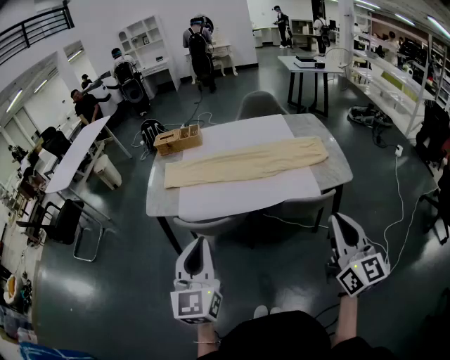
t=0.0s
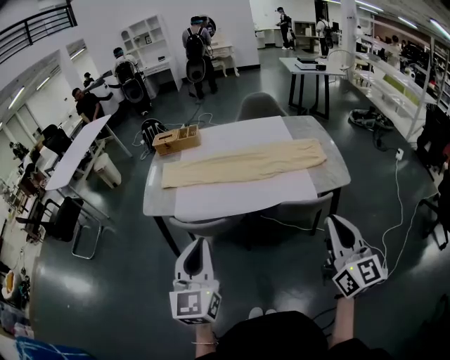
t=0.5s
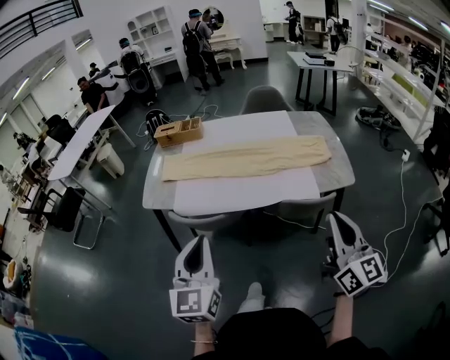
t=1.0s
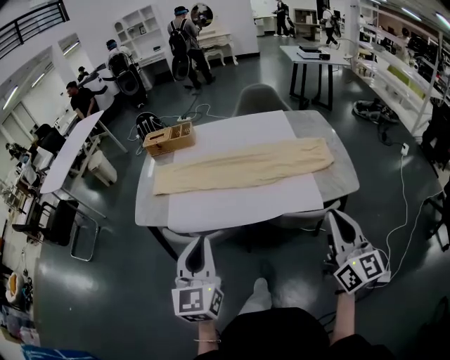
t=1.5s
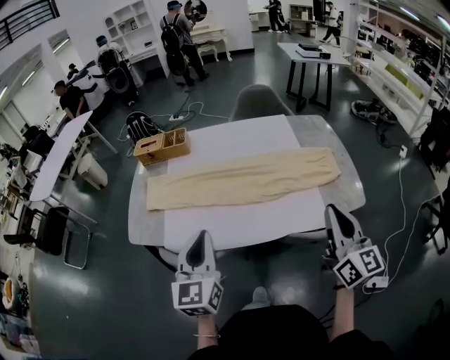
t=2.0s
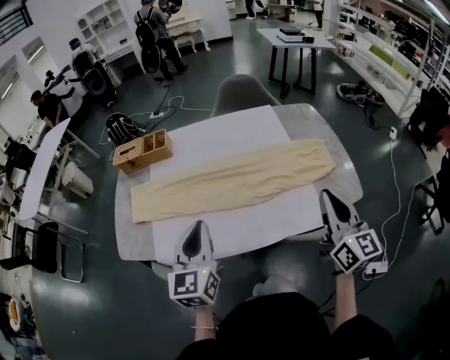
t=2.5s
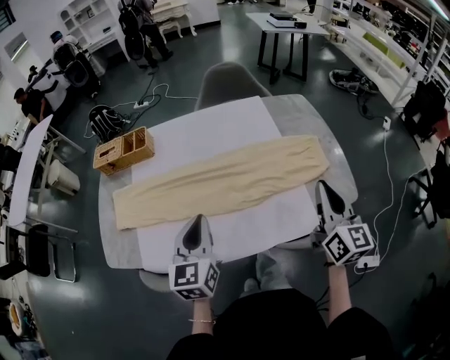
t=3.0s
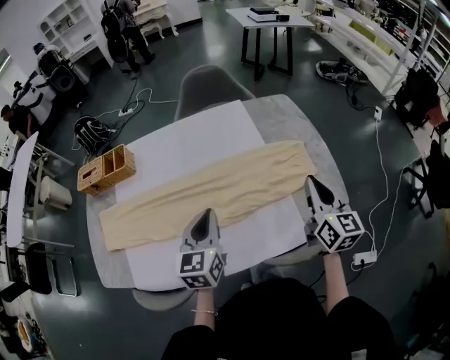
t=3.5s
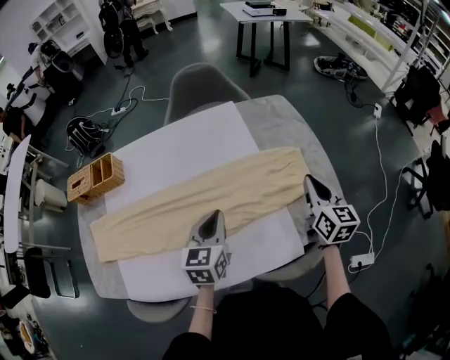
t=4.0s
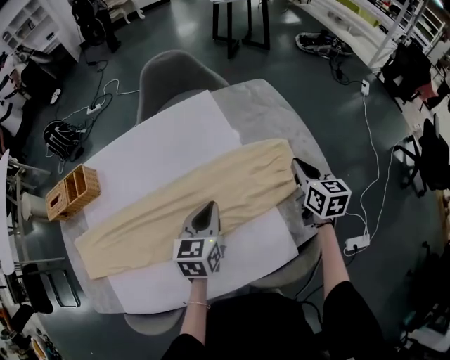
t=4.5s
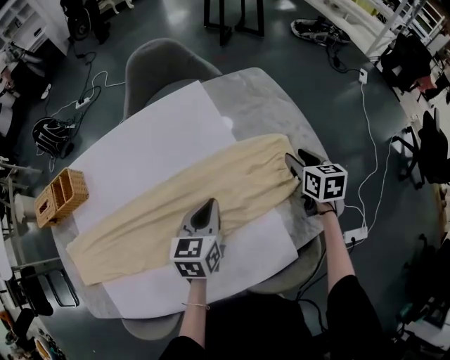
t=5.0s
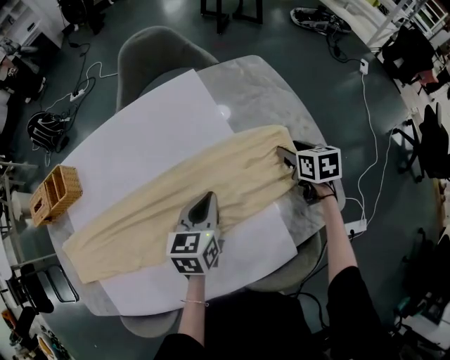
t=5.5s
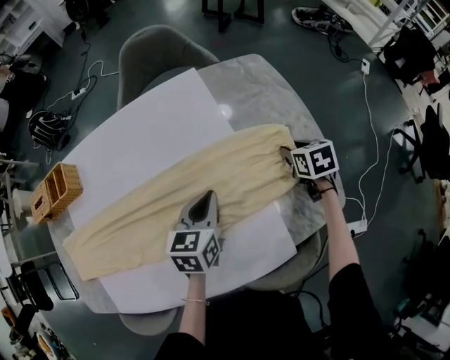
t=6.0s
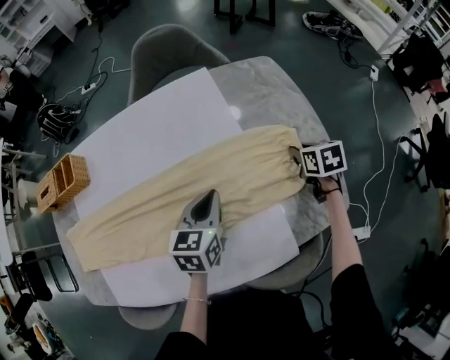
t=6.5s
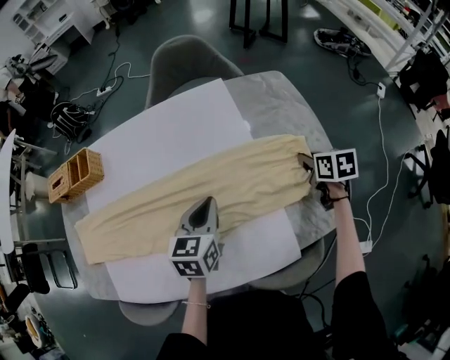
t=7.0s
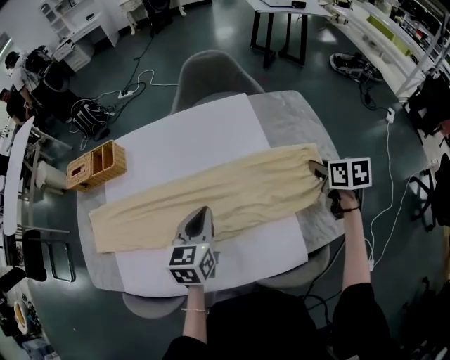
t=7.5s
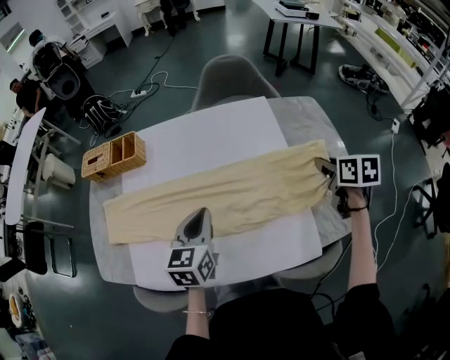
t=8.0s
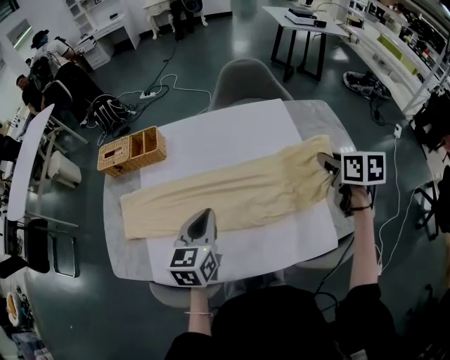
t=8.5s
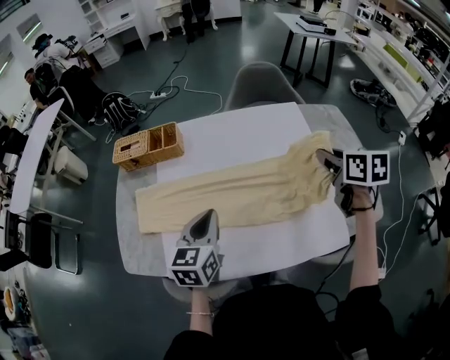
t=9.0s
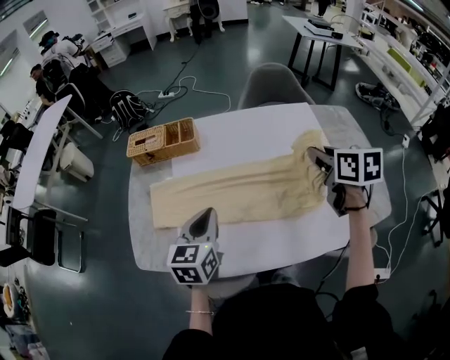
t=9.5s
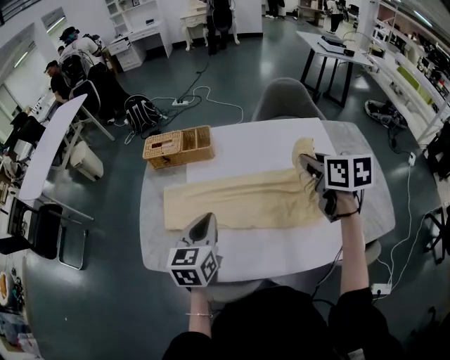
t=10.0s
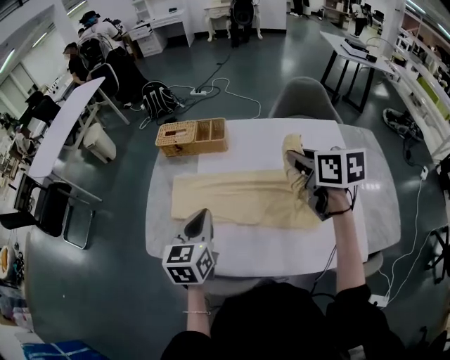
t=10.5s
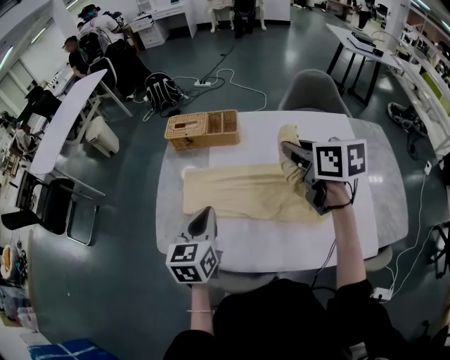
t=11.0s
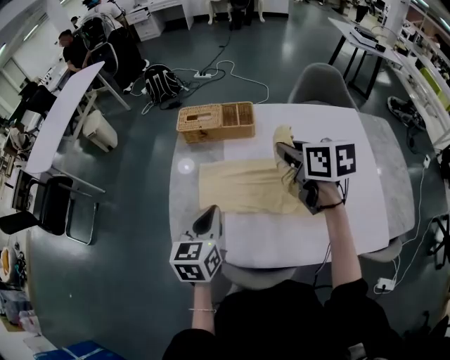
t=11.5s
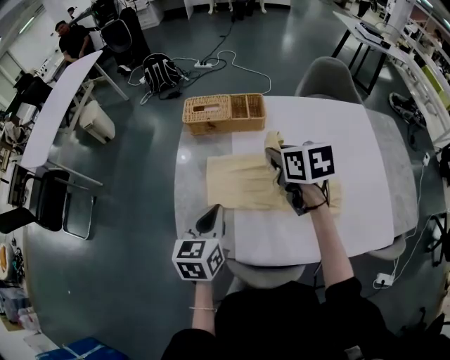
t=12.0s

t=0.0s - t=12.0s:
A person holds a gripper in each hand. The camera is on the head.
t=0.0s - t=2.0s: Both grippers travel together forward, about 25 cm.
t=2.0s - t=4.0s: The right gripper goes approximately 35 cm forward, downward and to the right, and changes its angle by about 30 degrees; the left gripper shifts some 40 cm forward, to the right and downward, and swivels about 30 degrees.
t=4.0s - t=6.0s: The right gripper moves downward and forward, some 20 cm, tilts its fingers approximately 40 degrees downward, and opens; the left gripper moves forward, downward and to the right, roughly 15 cm.
t=6.0s - t=8.0s: The left gripper shifts approximately 25 cm to the left, upward and backward, and rotates about 20 degrees. Meanwhile the right gripper shifts about 20 cm upward and to the left, and closes up.
t=8.0s - t=10.0s: The two grippers go some 30 cm to the left.
t=10.0s - t=12.0s: The right gripper goes some 30 cm to the left. The left gripper goes some 15 cm to the left.

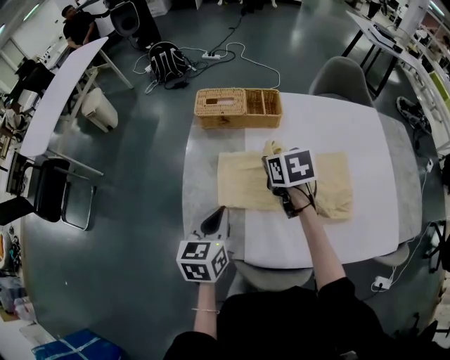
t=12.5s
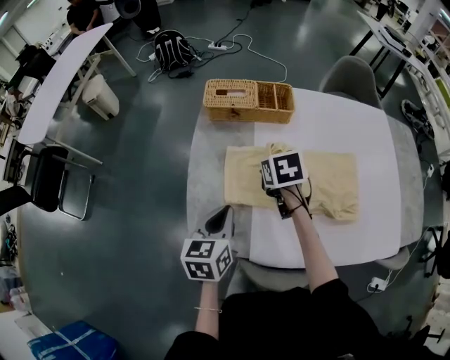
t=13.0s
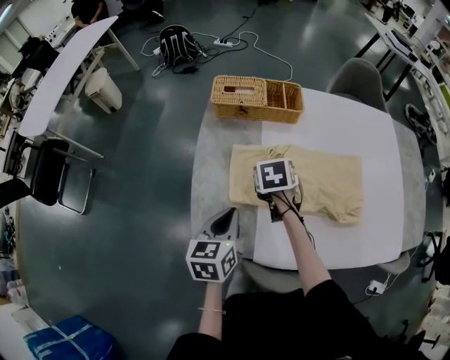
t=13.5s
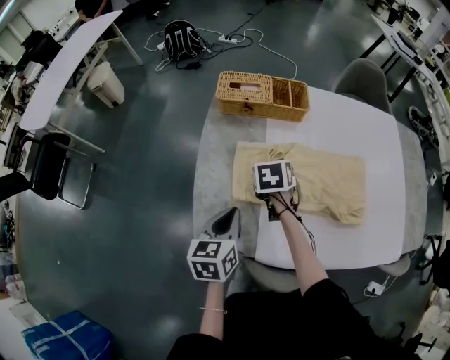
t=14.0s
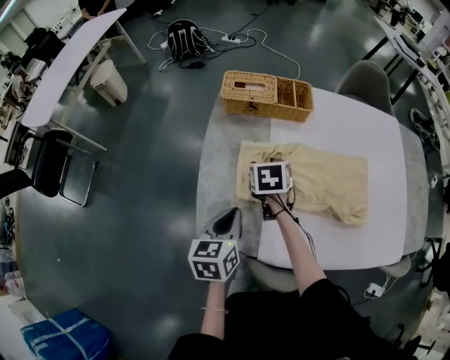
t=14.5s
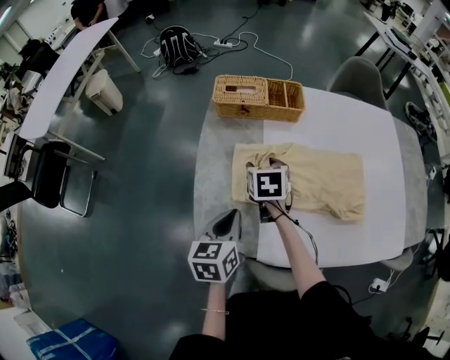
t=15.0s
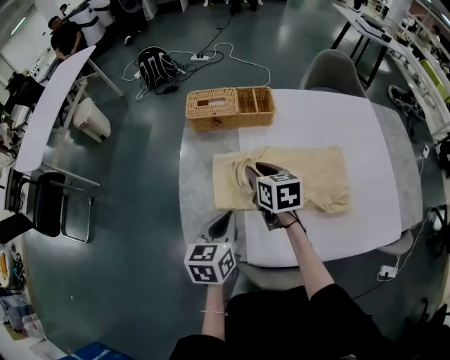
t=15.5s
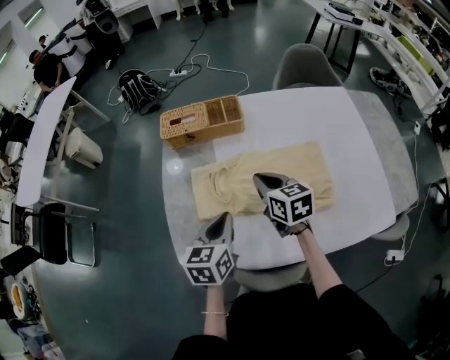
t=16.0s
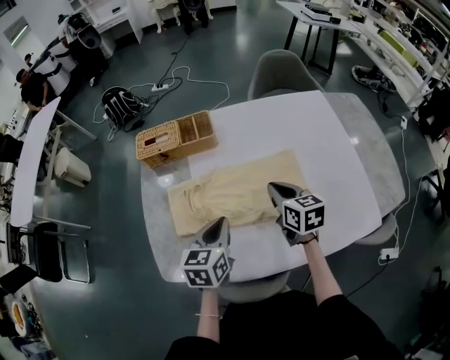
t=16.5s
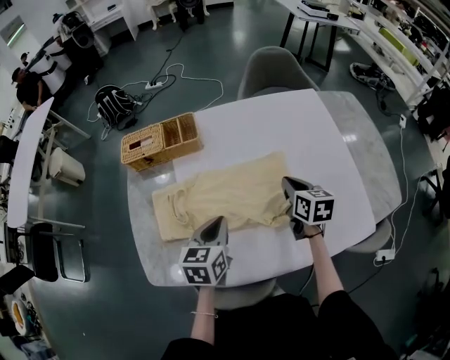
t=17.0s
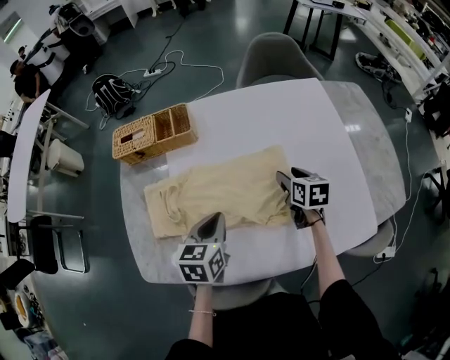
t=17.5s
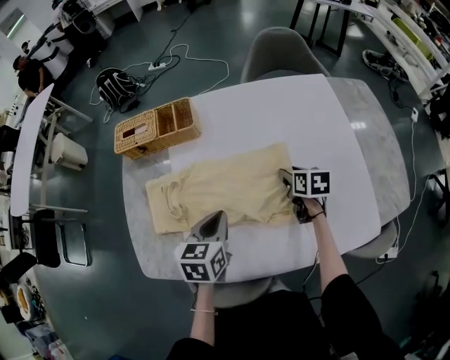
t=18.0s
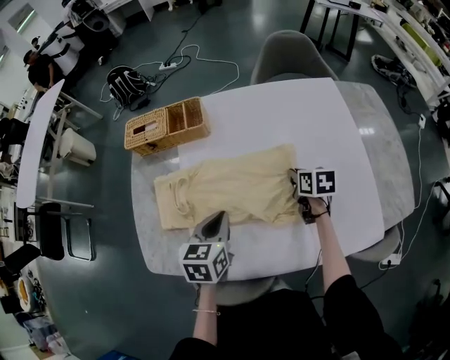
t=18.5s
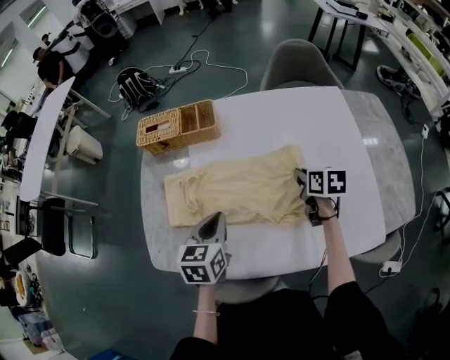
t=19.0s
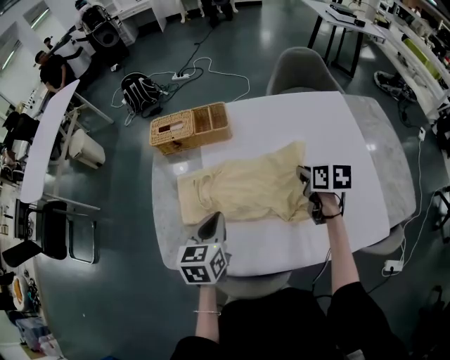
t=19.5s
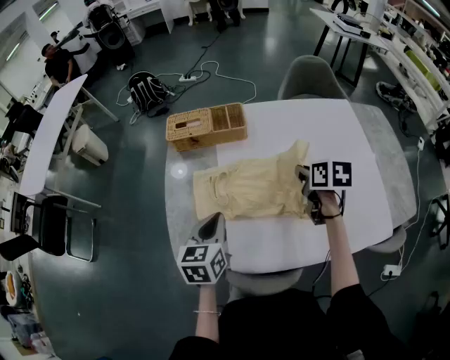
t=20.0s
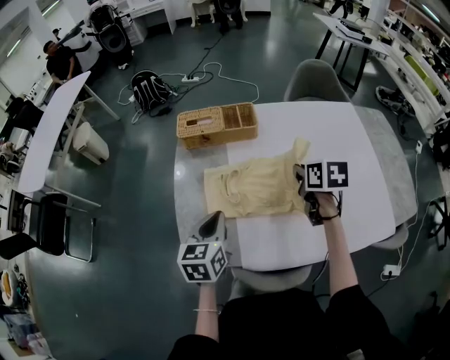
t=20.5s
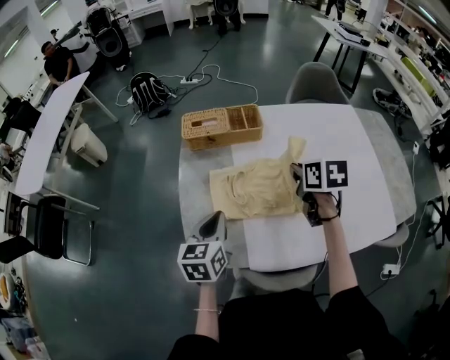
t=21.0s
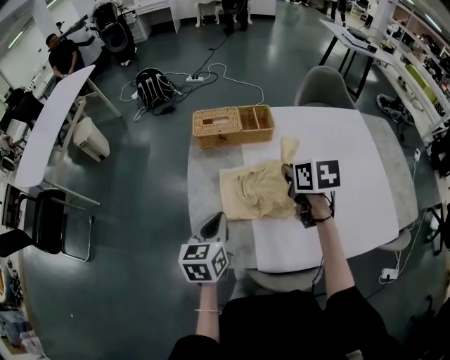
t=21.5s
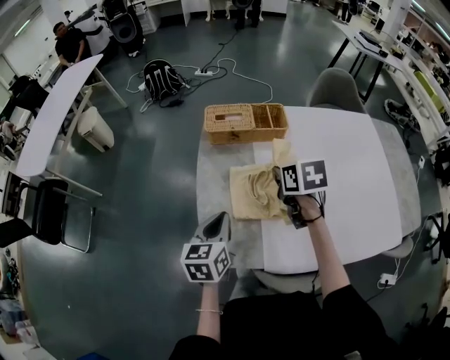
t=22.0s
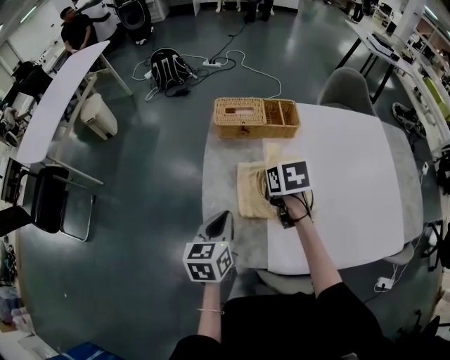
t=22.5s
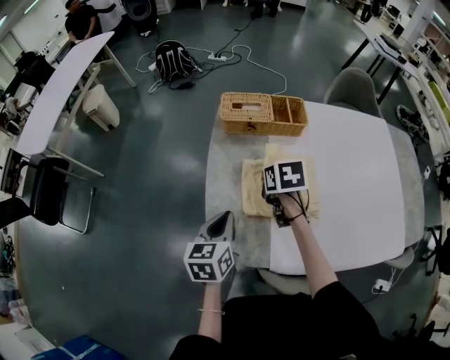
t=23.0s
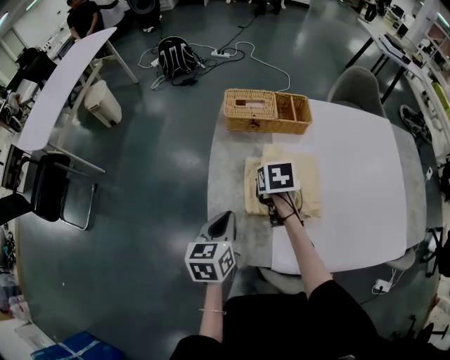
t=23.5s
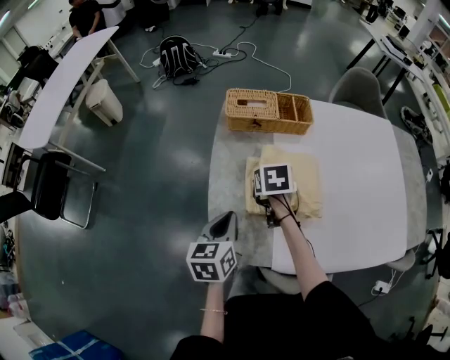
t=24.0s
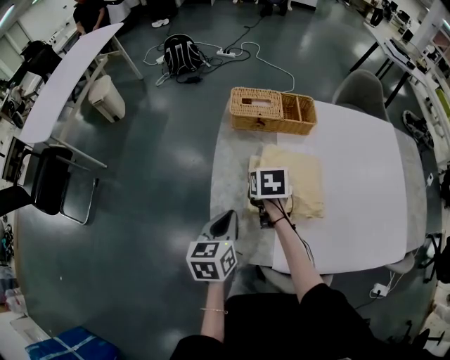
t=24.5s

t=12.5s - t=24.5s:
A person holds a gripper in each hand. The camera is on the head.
t=12.5s - t=14.5s: The left gripper travels downward by approximately 5 cm; the right gripper is displaced downward and to the left by approximately 15 cm, and opens up.
t=14.5s - t=16.5s: The left gripper heads to the right, covering some 20 cm; the right gripper goes approximately 25 cm to the right, rotates roughly 30 degrees, and closes up.
t=16.5s - t=18.5s: The right gripper shifts roughly 20 cm to the right, downward and forward, turns by roughly 20 degrees, and opens, then closes once more. The left gripper goes approximately 5 cm to the right.
t=18.5s - t=20.5s: The left gripper moves to the left, roughly 20 cm, while the right gripper shifts approximately 25 cm to the left and upward.
t=20.5s - t=22.5s: The left gripper moves to the left, about 10 cm. The right gripper heads to the left, covering some 20 cm.
t=22.5s - t=24.5s: The right gripper moves downward and to the left, approximately 10 cm, and opens up.

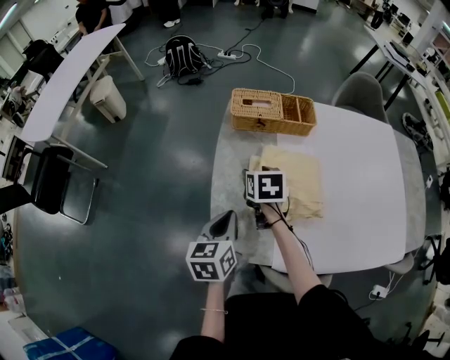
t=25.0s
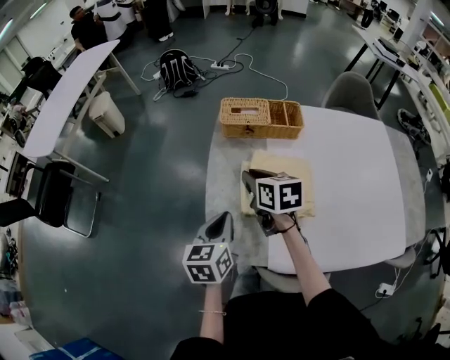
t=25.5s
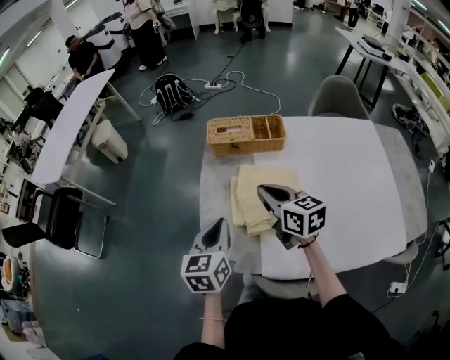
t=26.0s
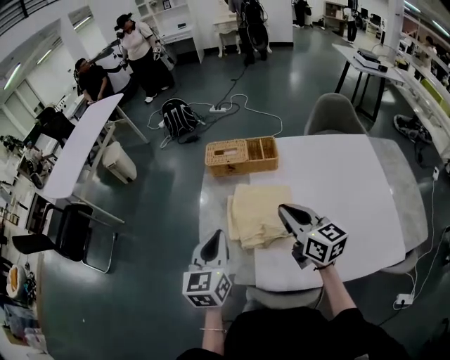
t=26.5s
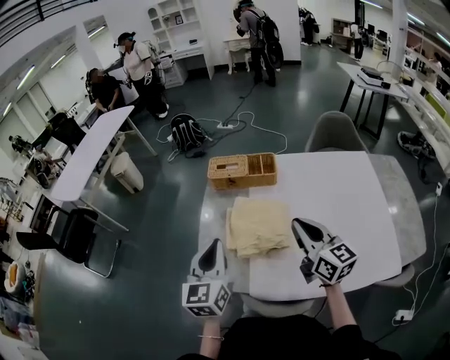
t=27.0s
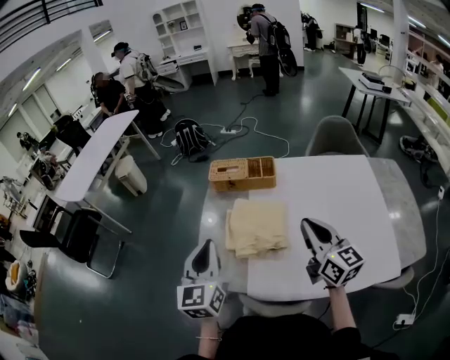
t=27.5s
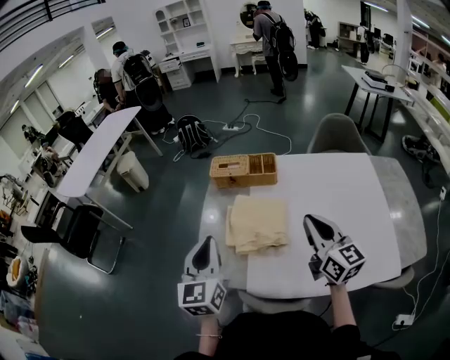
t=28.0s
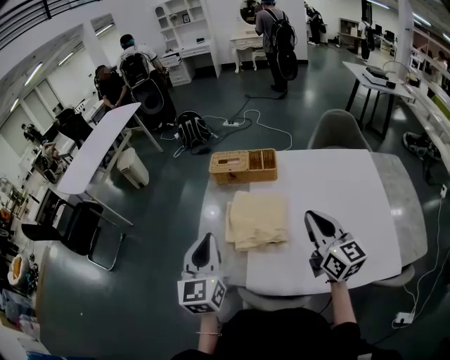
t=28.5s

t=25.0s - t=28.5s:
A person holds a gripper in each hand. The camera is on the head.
t=25.0s - t=27.0s: The left gripper moves upward and to the right, approximately 20 cm, and changes its angle by approximately 30 degrees; the right gripper is displaced upward, to the right and backward by roughly 35 cm, angles its fingers upward, by approximately 50 degrees, and closes its fingers.
t=27.0s - t=28.5s: The right gripper ends up some 5 cm from where it was.
